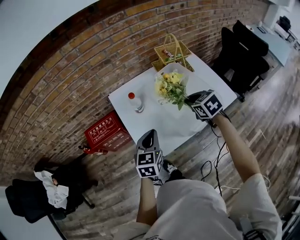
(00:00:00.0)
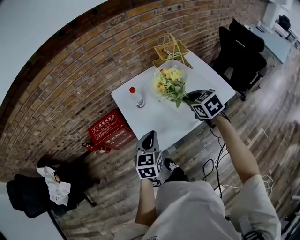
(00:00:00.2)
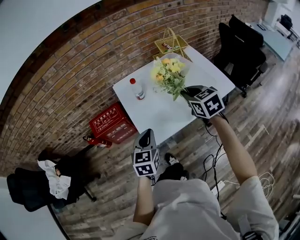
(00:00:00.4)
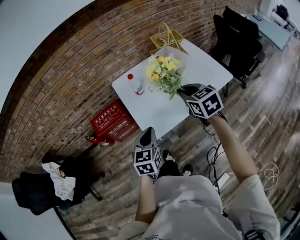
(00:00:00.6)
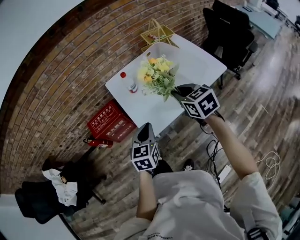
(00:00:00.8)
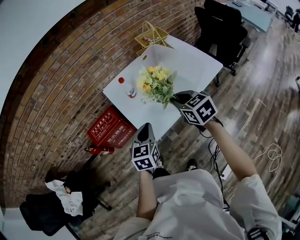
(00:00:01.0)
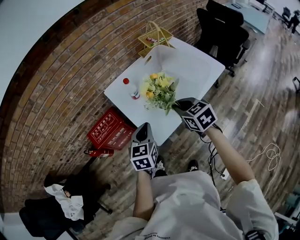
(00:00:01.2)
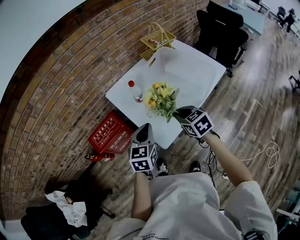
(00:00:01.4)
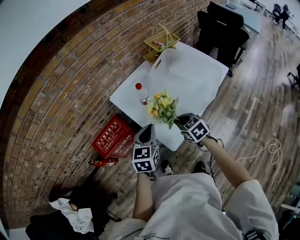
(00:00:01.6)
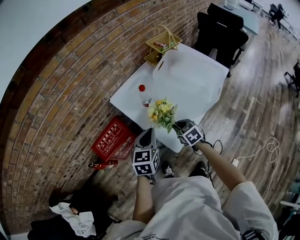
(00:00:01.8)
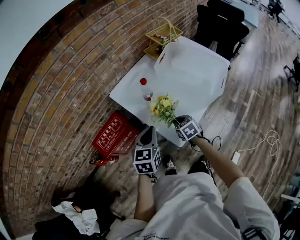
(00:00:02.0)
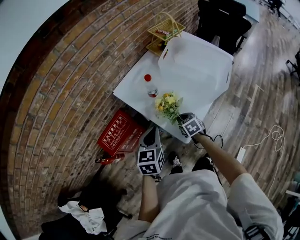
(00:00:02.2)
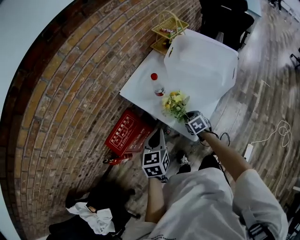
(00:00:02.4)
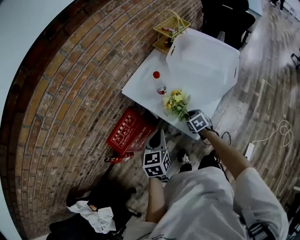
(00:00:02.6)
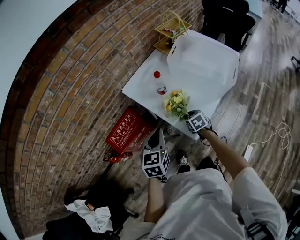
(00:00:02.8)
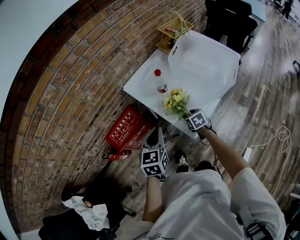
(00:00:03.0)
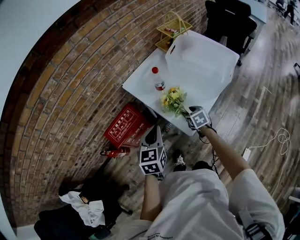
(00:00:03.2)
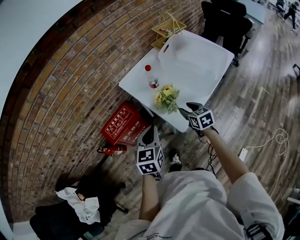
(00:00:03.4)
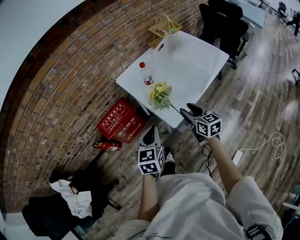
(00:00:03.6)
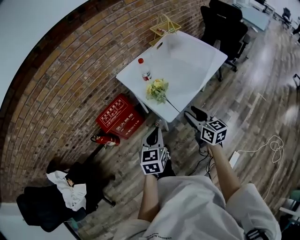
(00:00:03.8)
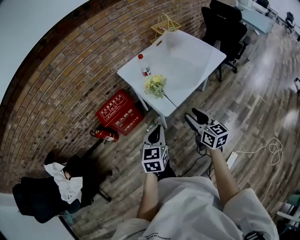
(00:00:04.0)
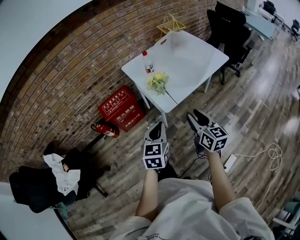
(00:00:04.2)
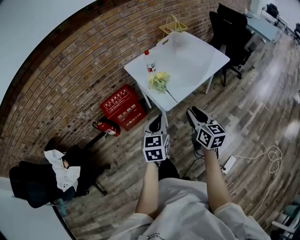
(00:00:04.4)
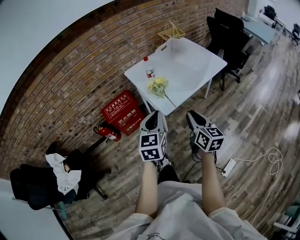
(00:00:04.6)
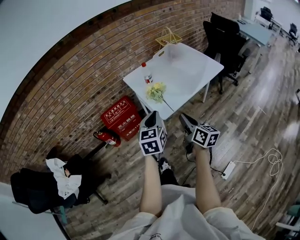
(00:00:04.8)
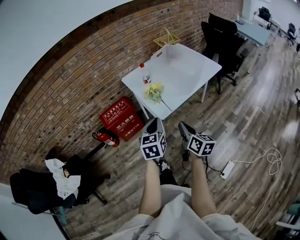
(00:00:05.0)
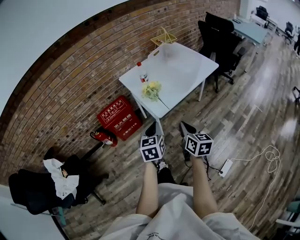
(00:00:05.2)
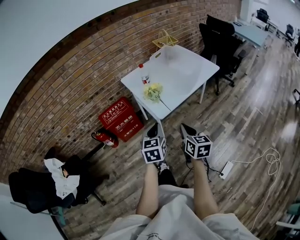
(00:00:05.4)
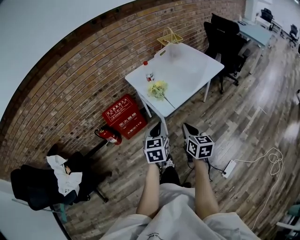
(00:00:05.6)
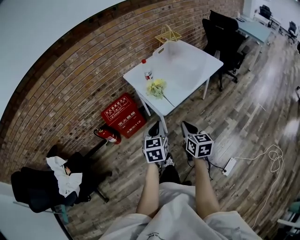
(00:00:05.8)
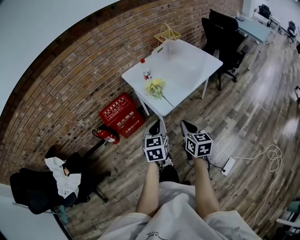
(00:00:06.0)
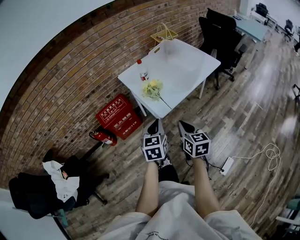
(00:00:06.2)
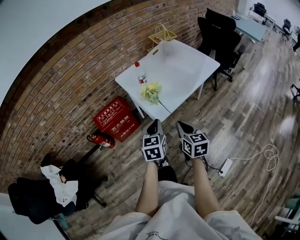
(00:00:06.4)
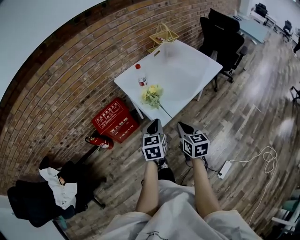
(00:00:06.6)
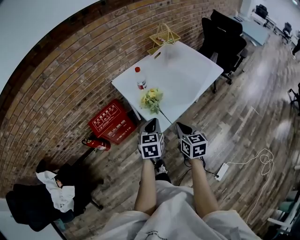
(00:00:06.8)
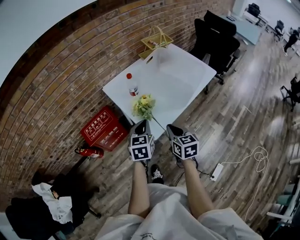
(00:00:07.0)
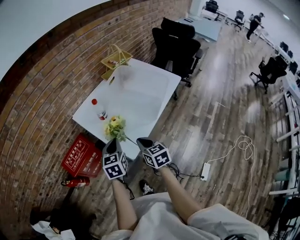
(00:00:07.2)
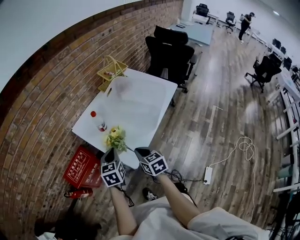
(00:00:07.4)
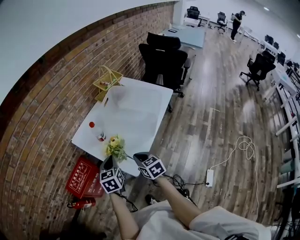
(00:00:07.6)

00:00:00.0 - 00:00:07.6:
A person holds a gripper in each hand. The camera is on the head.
00:00:00.0 - 00:00:01.6: The right gripper goes approximately 25 cm to the left, backward and downward. The left gripper moves to the left, some 10 cm, and travels backward and back again, some 10 cm each way.
00:00:01.6 - 00:00:03.0: The right gripper is displaced downward by some 15 cm, and opens up; the left gripper is displaced to the left by some 10 cm.
00:00:03.0 - 00:00:04.6: The right gripper shifts about 40 cm upward and backward, tips its fingers upward by about 50 degrees, and closes. The left gripper travels backward, to the right and upward by about 25 cm.
00:00:04.6 - 00:00:06.0: The right gripper moves some 5 cm; the left gripper shifts some 5 cm downward.
00:00:06.0 - 00:00:07.6: The grippers both shift forward by about 25 cm.

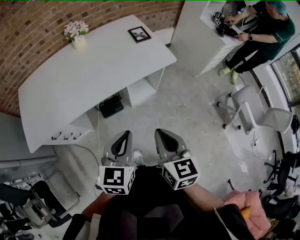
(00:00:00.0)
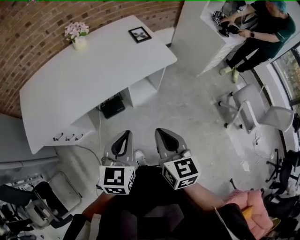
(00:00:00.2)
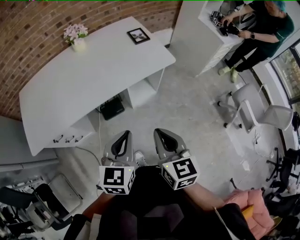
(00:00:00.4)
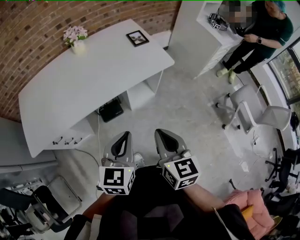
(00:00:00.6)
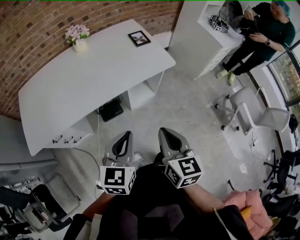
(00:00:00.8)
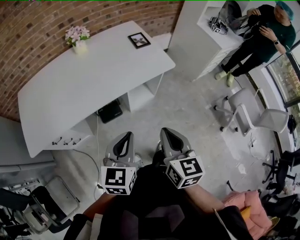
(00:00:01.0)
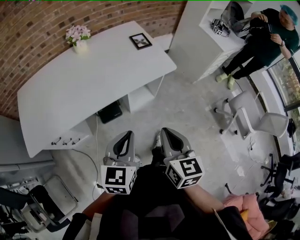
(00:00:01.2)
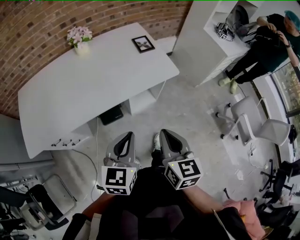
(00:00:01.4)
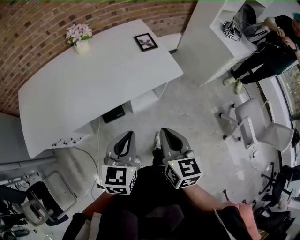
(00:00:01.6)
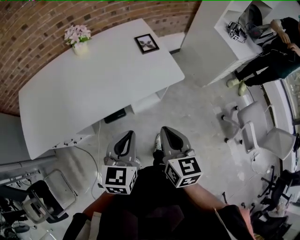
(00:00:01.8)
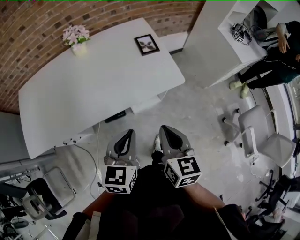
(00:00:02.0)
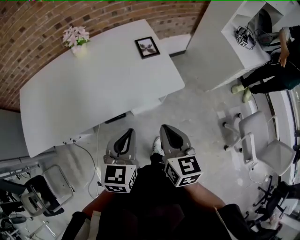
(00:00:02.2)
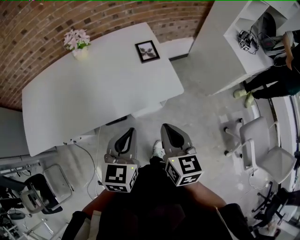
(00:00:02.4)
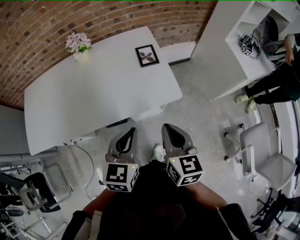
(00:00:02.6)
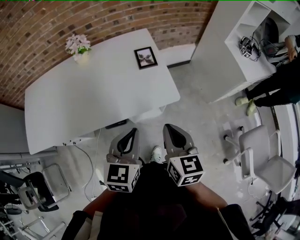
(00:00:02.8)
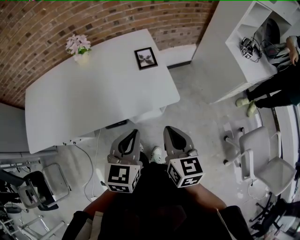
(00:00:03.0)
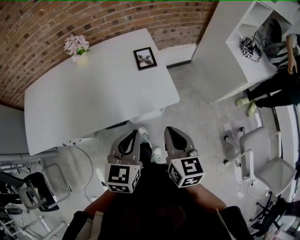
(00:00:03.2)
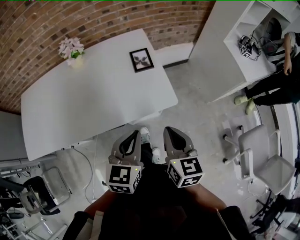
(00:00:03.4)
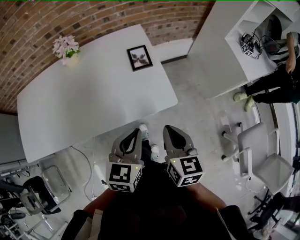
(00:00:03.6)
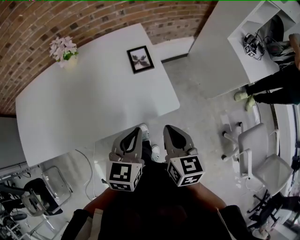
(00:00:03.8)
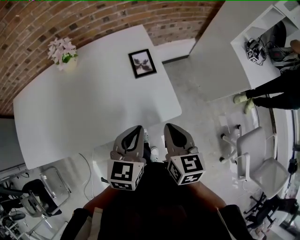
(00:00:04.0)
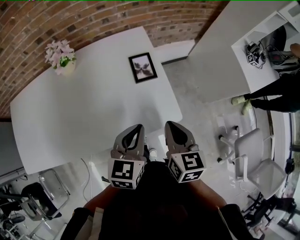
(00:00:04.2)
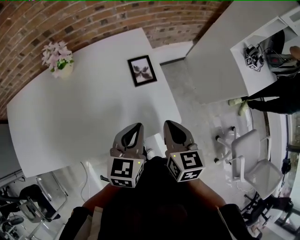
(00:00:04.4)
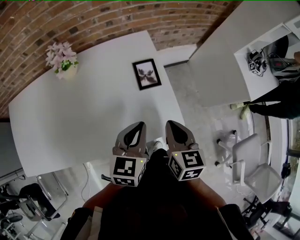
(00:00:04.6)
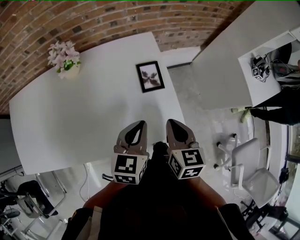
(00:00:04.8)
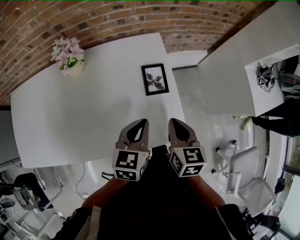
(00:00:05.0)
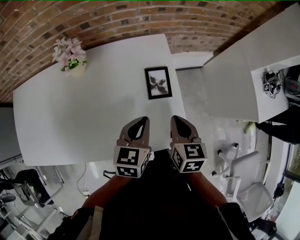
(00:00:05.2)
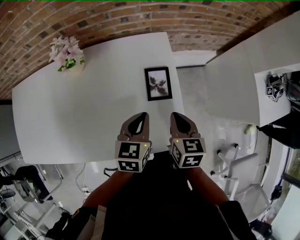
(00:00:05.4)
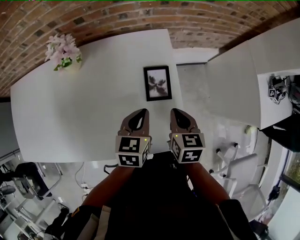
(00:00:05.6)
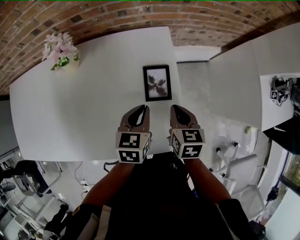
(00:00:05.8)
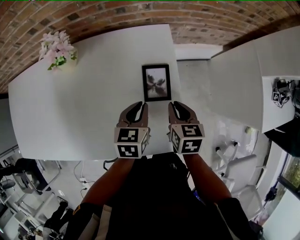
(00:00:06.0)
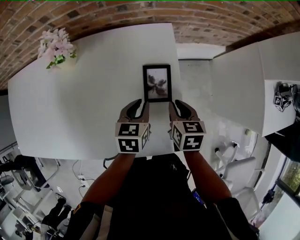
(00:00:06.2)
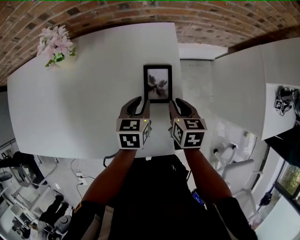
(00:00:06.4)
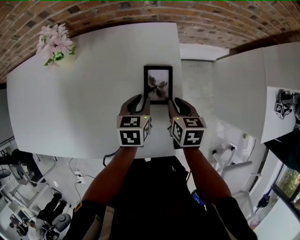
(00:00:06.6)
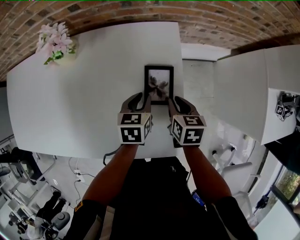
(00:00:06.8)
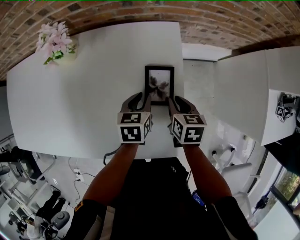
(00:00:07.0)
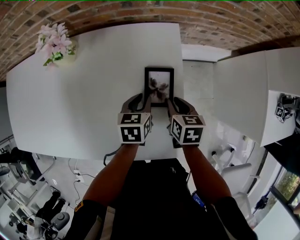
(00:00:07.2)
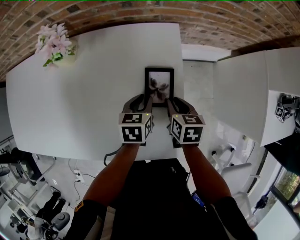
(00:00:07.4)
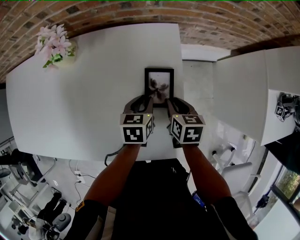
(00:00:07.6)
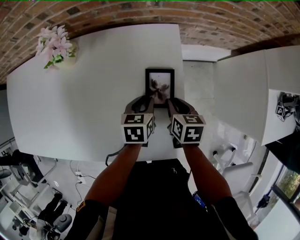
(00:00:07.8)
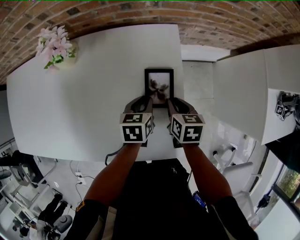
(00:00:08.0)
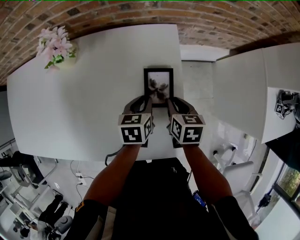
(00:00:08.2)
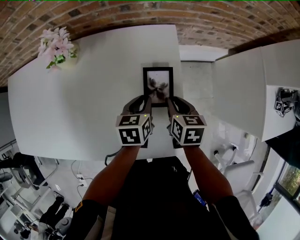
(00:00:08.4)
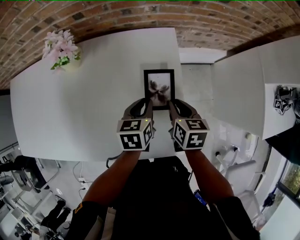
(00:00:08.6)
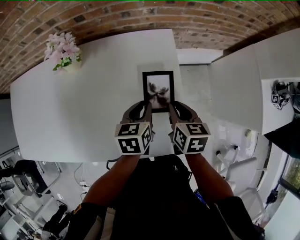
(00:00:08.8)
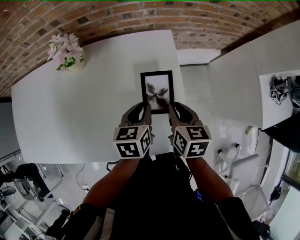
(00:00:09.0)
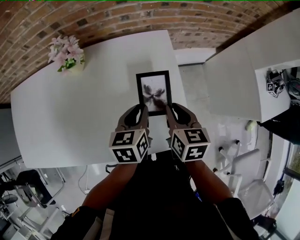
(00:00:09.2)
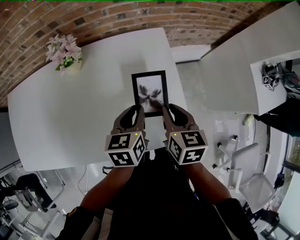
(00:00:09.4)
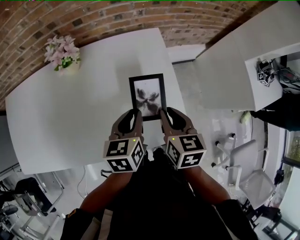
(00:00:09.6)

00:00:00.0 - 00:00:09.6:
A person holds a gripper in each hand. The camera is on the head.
00:00:00.0 - 00:00:01.6: The grippers both shift forward by approximately 10 cm.
00:00:01.6 - 00:00:03.2: Both grippers travel together forward and to the right, some 20 cm.
00:00:03.2 - 00:00:04.8: The two grippers go approximately 20 cm forward.
00:00:04.8 - 00:00:06.4: The left gripper heads downward and forward, covering some 20 cm, changes its angle by roughly 30 degrees, and opens up, while the right gripper travels forward and downward by approximately 20 cm, and turns by some 20 degrees.
00:00:06.4 - 00:00:08.0: There are only small adjustments of the grippers.
00:00:08.0 - 00:00:09.6: The grippers both shift upward, backward and to the left by some 20 cm.

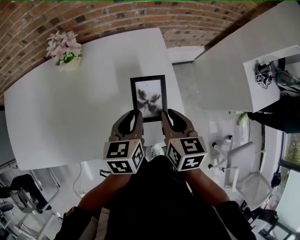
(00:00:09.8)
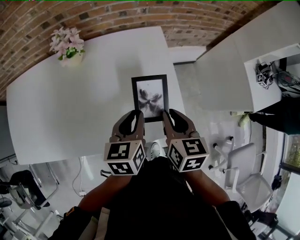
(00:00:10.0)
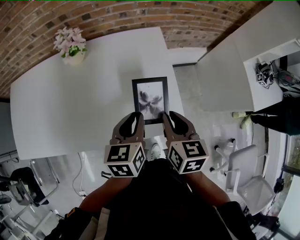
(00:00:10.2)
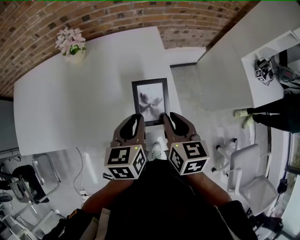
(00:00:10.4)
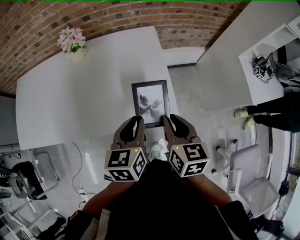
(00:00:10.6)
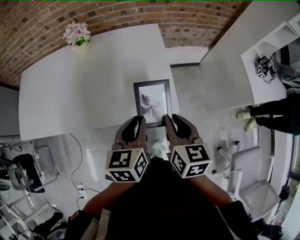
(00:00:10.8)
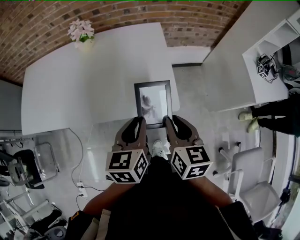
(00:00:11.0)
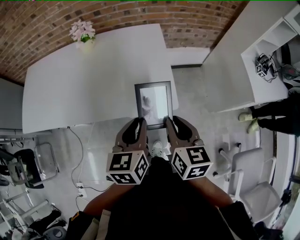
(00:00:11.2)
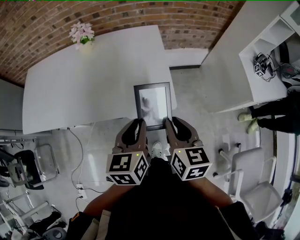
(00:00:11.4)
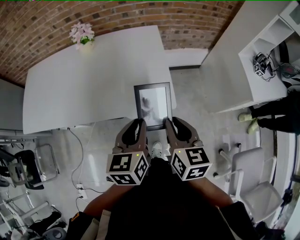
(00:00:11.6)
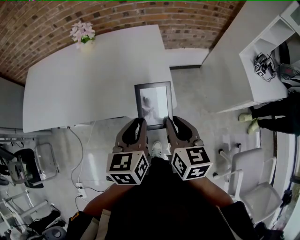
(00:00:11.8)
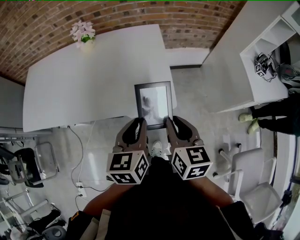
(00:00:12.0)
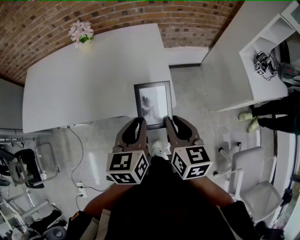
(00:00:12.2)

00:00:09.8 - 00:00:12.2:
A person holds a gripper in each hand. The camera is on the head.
00:00:09.8 - 00:00:11.0: The left gripper shifts some 20 cm backward. The right gripper heads backward and to the right, covering about 20 cm.
00:00:11.0 - 00:00:12.2: There are only small adjustments of the grippers.

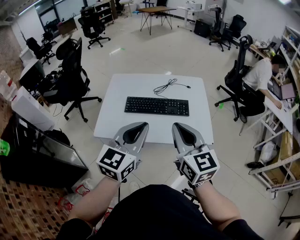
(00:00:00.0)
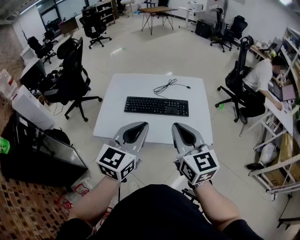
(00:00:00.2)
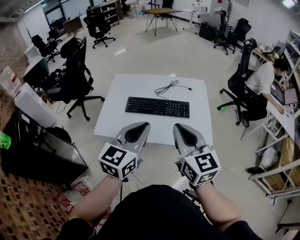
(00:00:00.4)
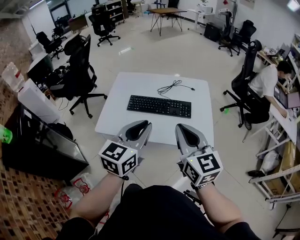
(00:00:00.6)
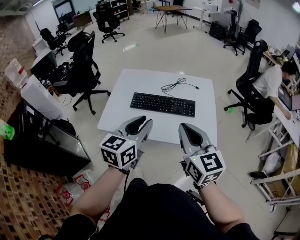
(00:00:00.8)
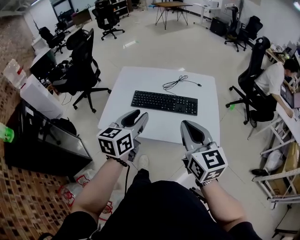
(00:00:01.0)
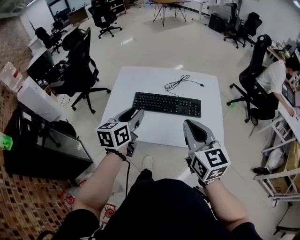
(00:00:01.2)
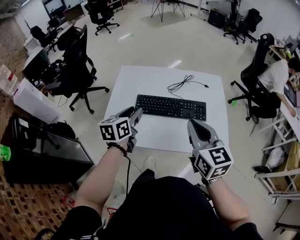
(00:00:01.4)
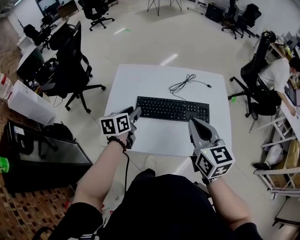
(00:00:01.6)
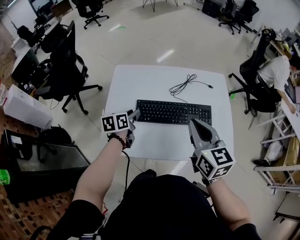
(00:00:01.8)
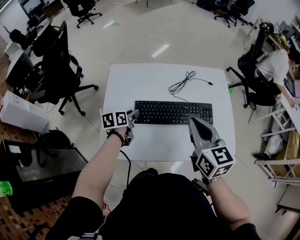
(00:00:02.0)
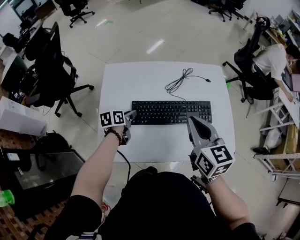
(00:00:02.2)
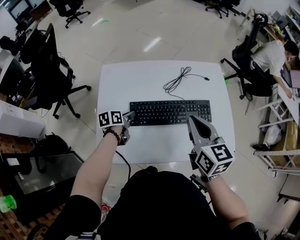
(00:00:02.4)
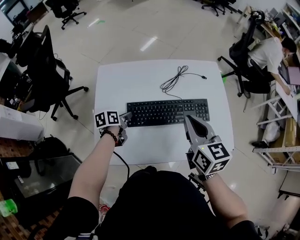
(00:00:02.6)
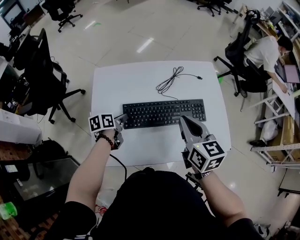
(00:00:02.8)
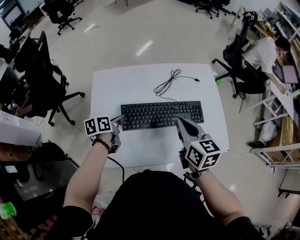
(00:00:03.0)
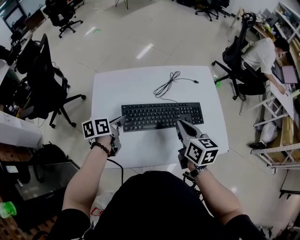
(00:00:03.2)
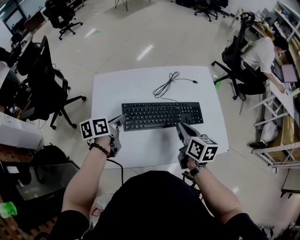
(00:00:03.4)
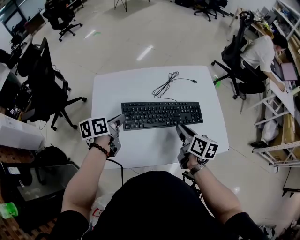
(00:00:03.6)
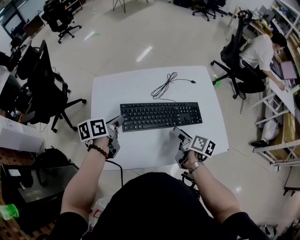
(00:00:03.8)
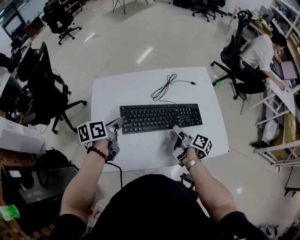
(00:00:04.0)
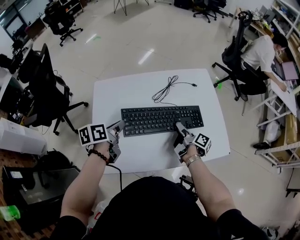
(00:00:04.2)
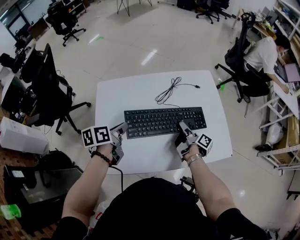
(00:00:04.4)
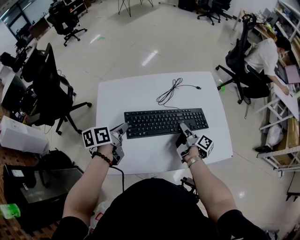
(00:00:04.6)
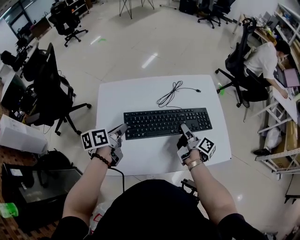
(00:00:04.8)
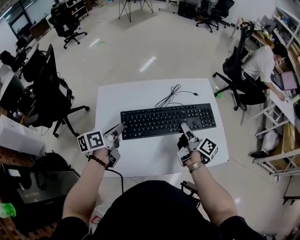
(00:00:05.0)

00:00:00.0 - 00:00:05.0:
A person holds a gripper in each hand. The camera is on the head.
00:00:00.0 - 00:00:01.6: The left gripper is displaced forward, downward and to the left by roughly 35 cm, changes its angle by some 40 degrees, and opens; the right gripper goes some 15 cm forward and downward.
00:00:01.6 - 00:00:03.4: The left gripper travels forward by some 5 cm, travels downward and back again, approximately 15 cm each way, and changes its angle by about 20 degrees; the right gripper is displaced downward and forward by some 15 cm, and swivels some 30 degrees.
00:00:03.4 - 00:00:05.0: The right gripper goes approximately 5 cm forward, reaches approximately 10 cm downward, then returns, turns by roughly 40 degrees, and opens.
